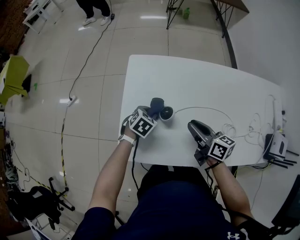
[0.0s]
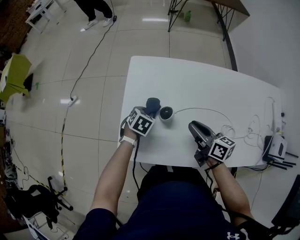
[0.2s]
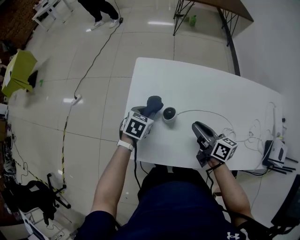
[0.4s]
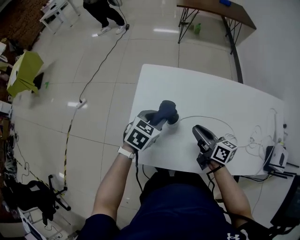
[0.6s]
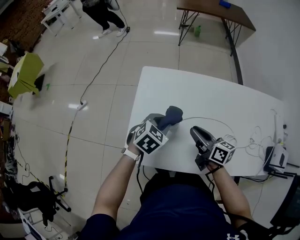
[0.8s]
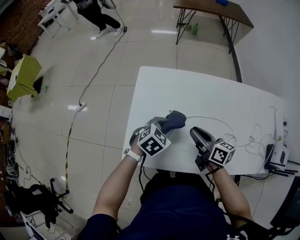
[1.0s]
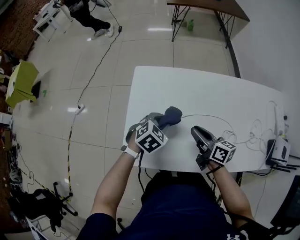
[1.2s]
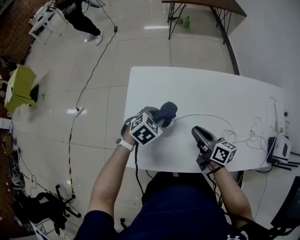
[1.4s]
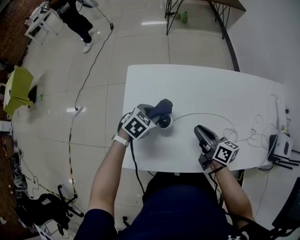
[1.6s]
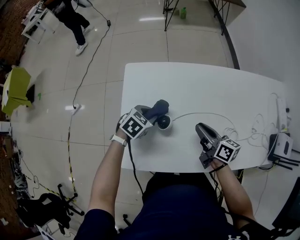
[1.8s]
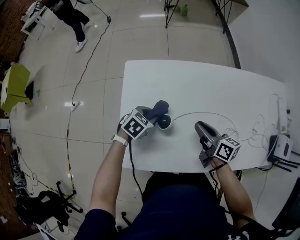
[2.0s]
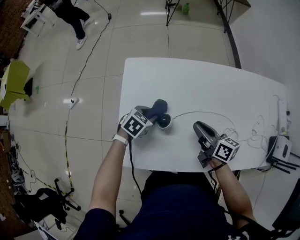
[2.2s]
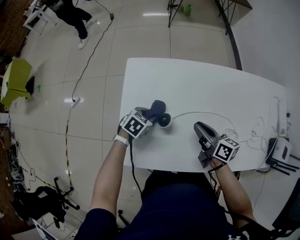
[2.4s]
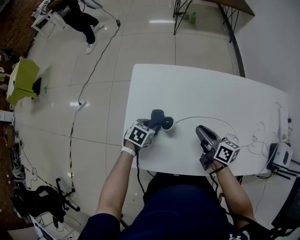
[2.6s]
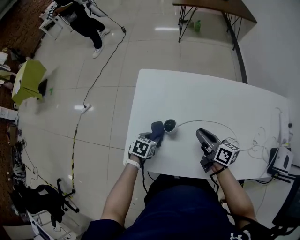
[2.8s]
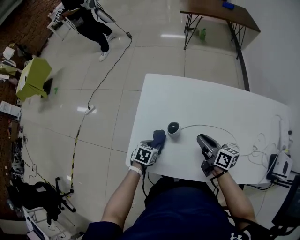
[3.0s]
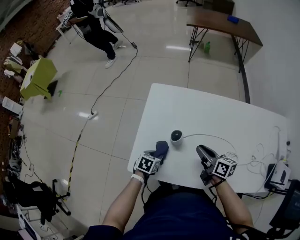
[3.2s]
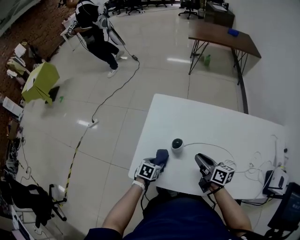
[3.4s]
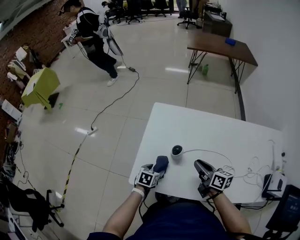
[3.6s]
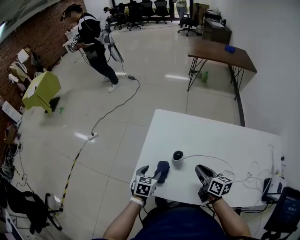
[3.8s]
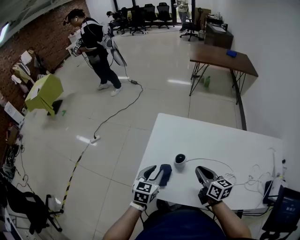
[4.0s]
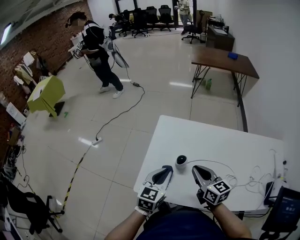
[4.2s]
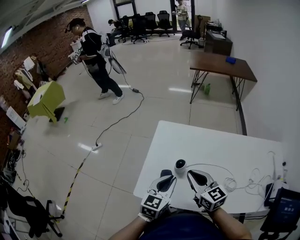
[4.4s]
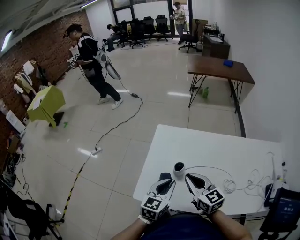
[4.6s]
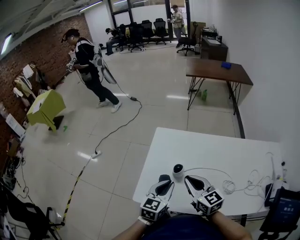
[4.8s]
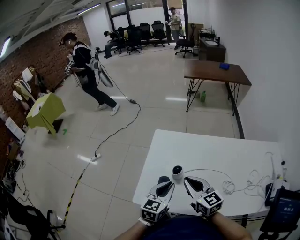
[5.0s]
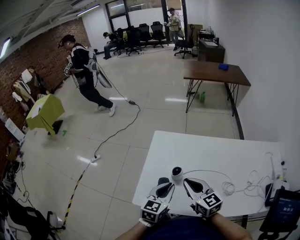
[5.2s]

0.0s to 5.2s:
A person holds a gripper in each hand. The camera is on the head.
0.0s to 1.8s: The left gripper goes upward and returns, about 15 cm each way. Meanwhile the right gripper shifts by some 5 cm.
1.8s to 3.4s: The left gripper shifts approximately 15 cm backward and downward, and changes its angle by approximately 40 degrees. Meanwhile the right gripper moves roughly 5 cm.
3.4s to 5.2s: The left gripper goes roughly 25 cm upward, angles its fingers upward, by about 40 degrees, and closes up; the right gripper is displaced upward and to the left by about 15 cm, and turns by about 40 degrees.

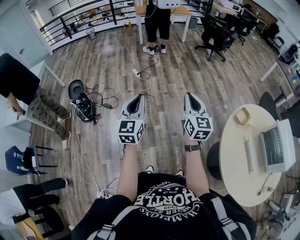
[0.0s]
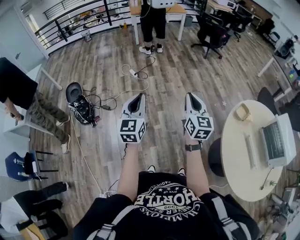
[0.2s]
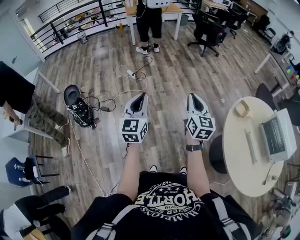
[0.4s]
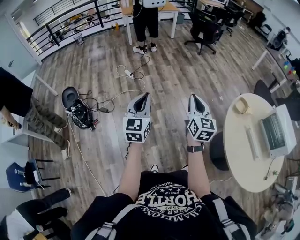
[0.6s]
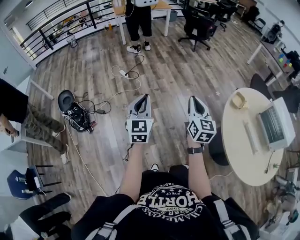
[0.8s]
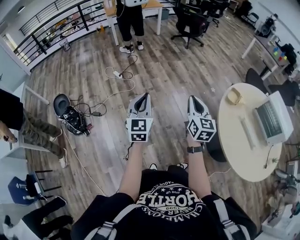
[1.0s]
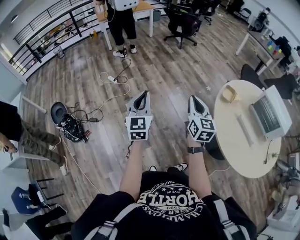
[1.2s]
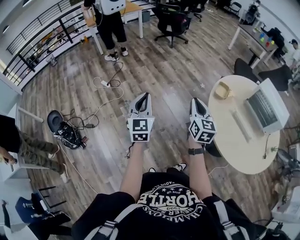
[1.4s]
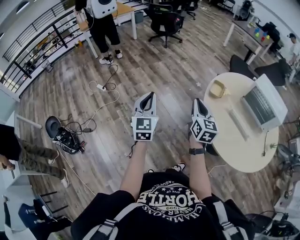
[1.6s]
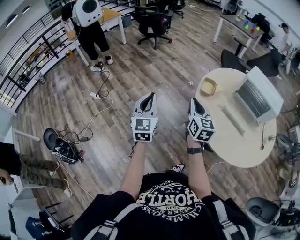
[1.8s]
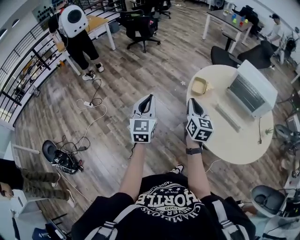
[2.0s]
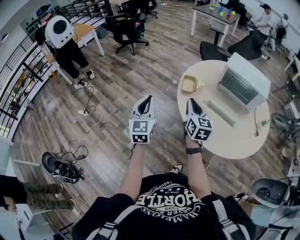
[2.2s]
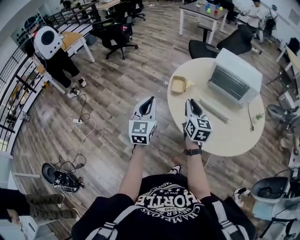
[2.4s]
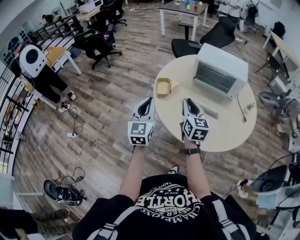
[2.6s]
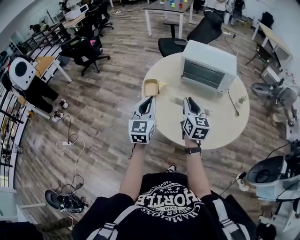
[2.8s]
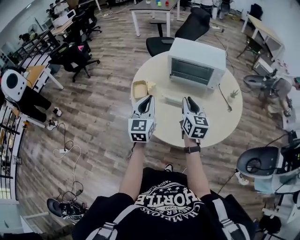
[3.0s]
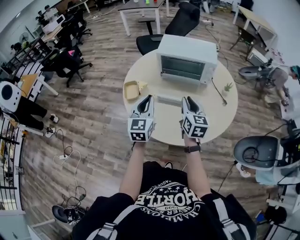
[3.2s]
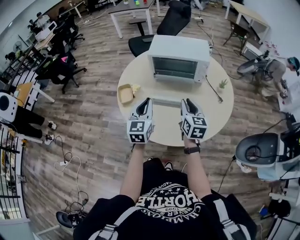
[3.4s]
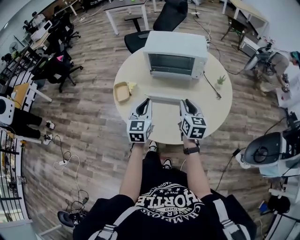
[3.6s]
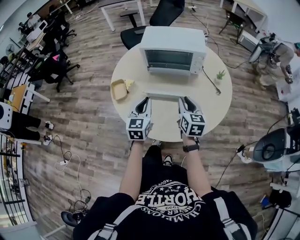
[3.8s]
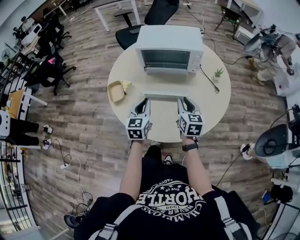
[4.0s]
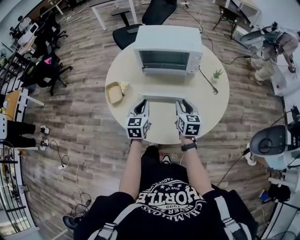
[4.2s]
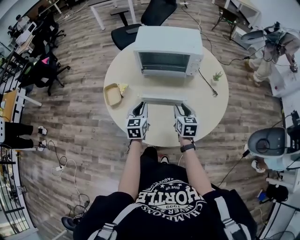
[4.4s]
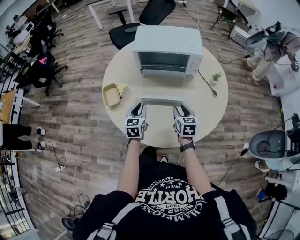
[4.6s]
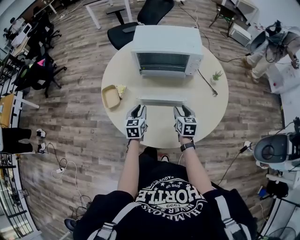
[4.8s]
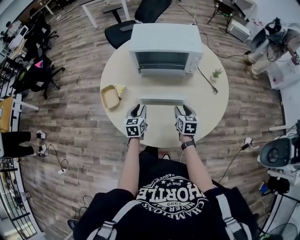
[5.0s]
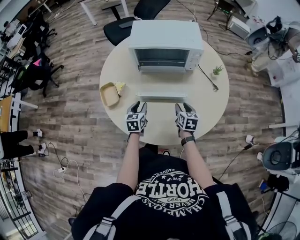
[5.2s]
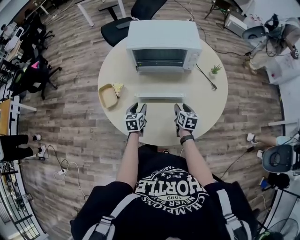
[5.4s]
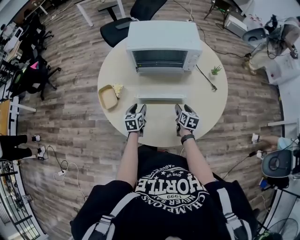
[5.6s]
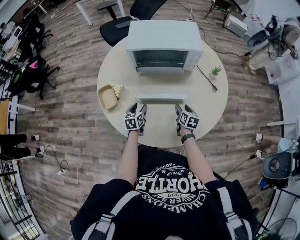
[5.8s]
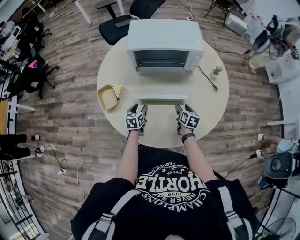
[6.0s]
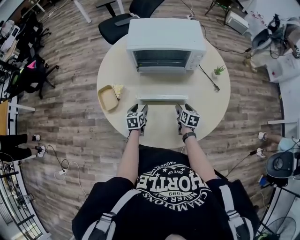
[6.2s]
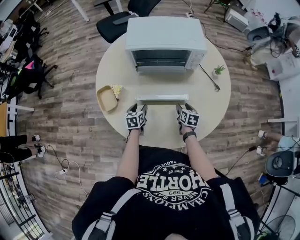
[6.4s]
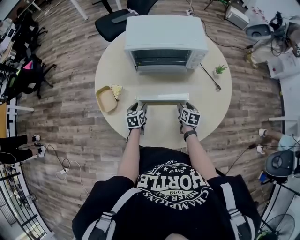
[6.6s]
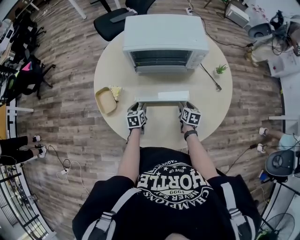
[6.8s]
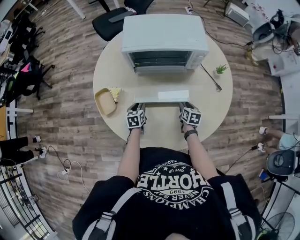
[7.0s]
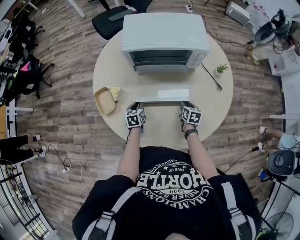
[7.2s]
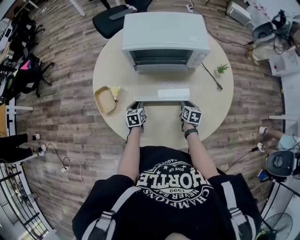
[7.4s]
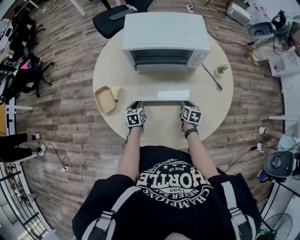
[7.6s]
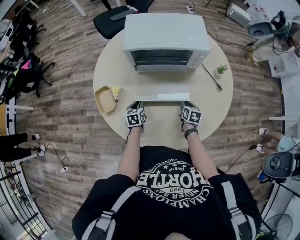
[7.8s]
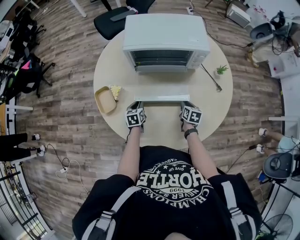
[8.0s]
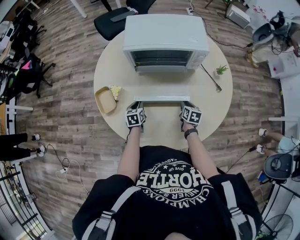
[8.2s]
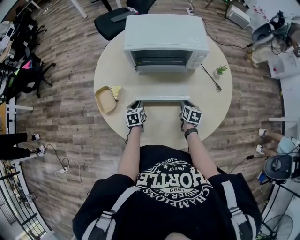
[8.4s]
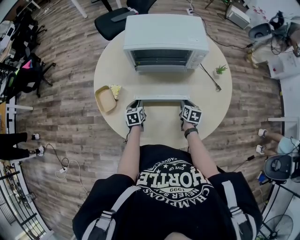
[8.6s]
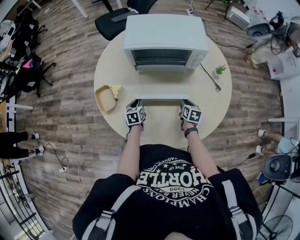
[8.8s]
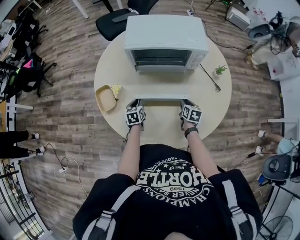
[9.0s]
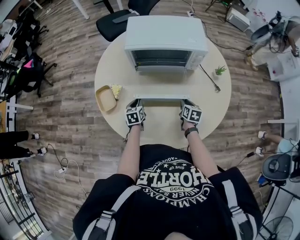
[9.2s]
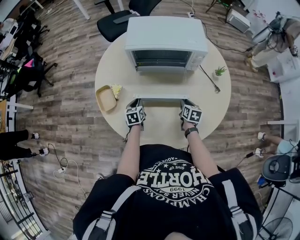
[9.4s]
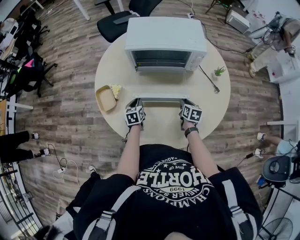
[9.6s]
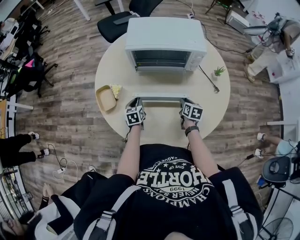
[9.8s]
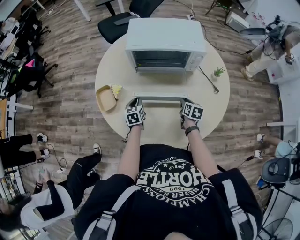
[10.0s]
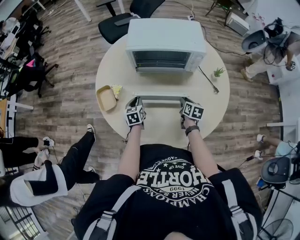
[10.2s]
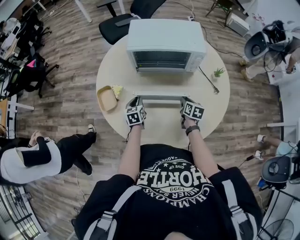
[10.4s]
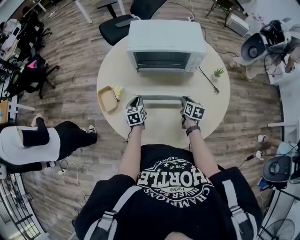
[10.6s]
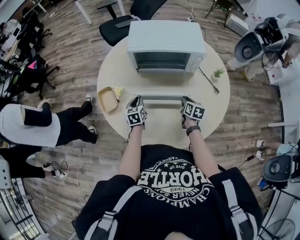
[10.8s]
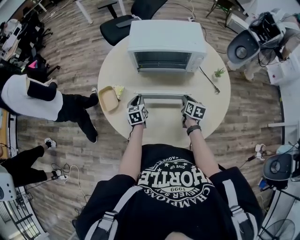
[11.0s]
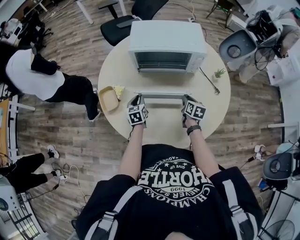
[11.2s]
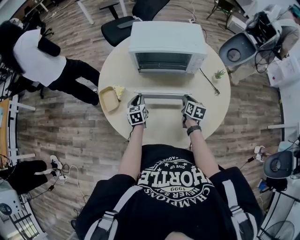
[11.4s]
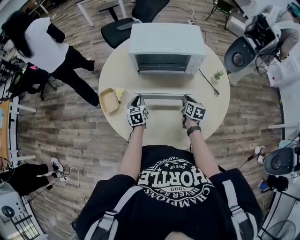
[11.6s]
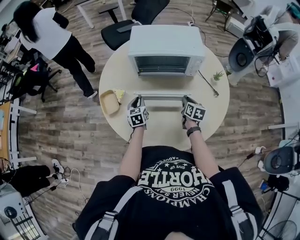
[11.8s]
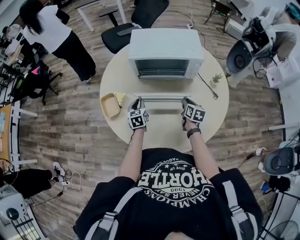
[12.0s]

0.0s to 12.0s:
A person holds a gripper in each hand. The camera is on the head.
0.0s to 1.6s: The left gripper changes place by some 25 cm, and swivels some 20 degrees. Meanwhile the right gripper ends up roughly 20 cm from where it was, and rotates approximately 30 degrees.
1.6s to 3.0s: Both grippers are carried approximately 40 cm. The left gripper turns by some 40 degrees. Meanwhile the right gripper rotates some 30 degrees.
3.0s to 4.4s: The right gripper moves downward and to the right, some 20 cm, and turns by roughly 20 degrees. The left gripper is displaced downward, forward and to the right by some 20 cm, and changes its angle by some 20 degrees.
4.4s to 6.0s: The grippers both shift downward by roughly 15 cm. The right gripper rotates some 20 degrees, and opens up, while the left gripper changes its angle by approximately 20 degrees, and opens up.
6.0s to 7.6s: The right gripper moves roughly 5 cm, and closes up. Meanwhile the left gripper ends up approximately 5 cm from where it was, and closes its fingers.
7.6s to 10.4s: The grippers stay close to where they were, moving slightly.
10.4s to 12.0s: The grippers stay close to where they were, moving slightly.

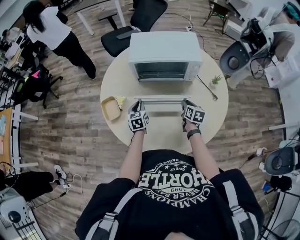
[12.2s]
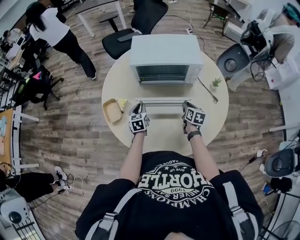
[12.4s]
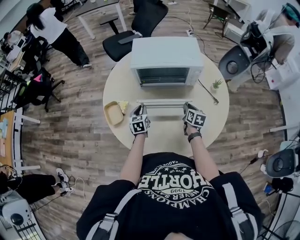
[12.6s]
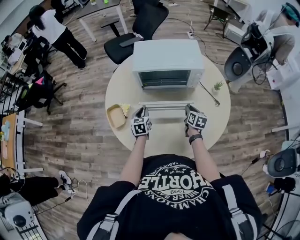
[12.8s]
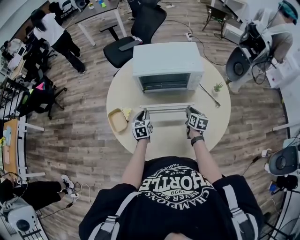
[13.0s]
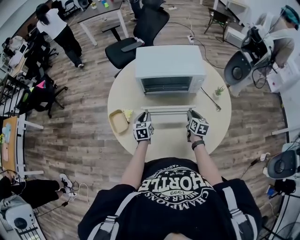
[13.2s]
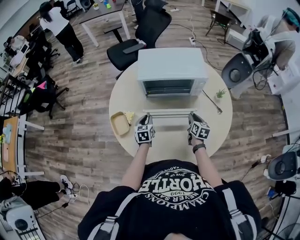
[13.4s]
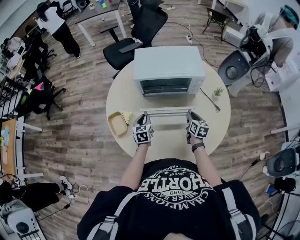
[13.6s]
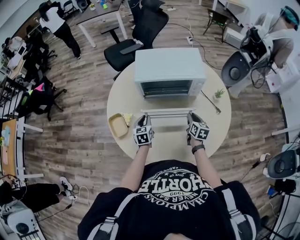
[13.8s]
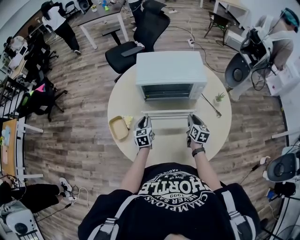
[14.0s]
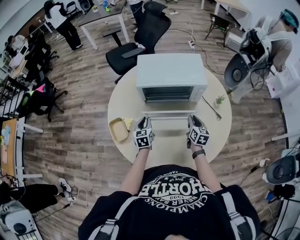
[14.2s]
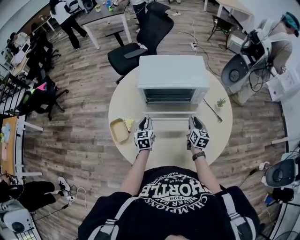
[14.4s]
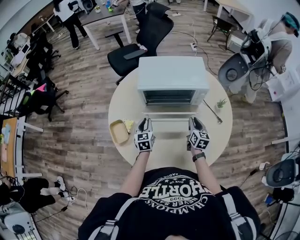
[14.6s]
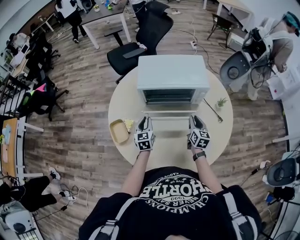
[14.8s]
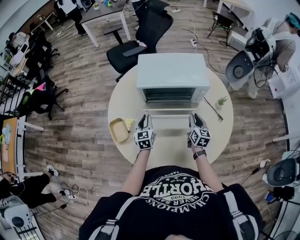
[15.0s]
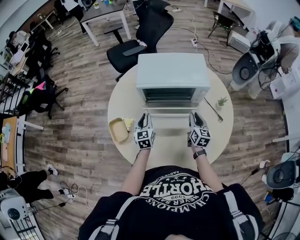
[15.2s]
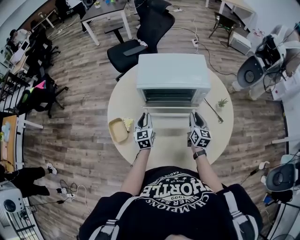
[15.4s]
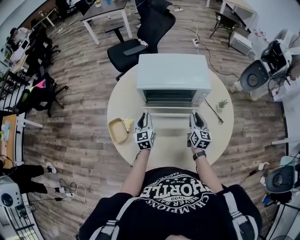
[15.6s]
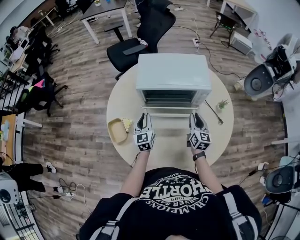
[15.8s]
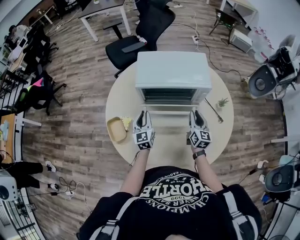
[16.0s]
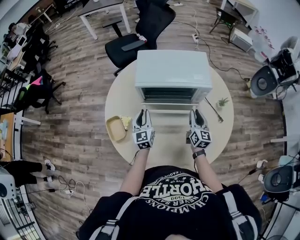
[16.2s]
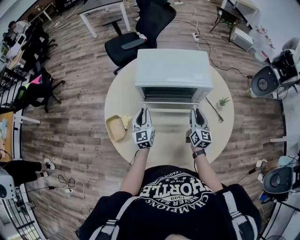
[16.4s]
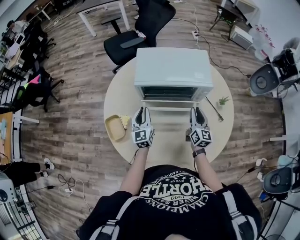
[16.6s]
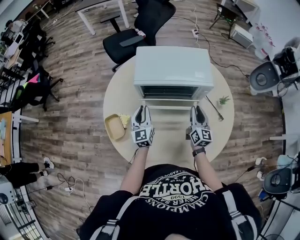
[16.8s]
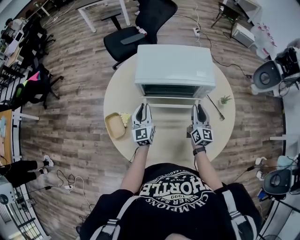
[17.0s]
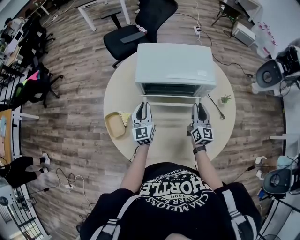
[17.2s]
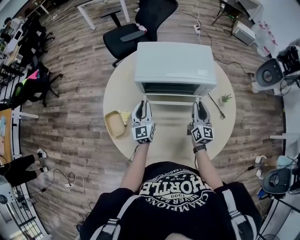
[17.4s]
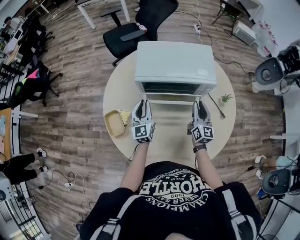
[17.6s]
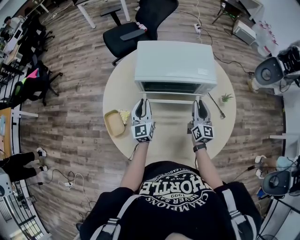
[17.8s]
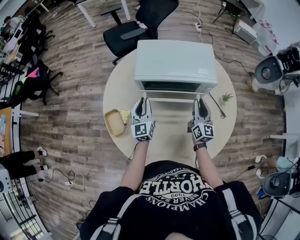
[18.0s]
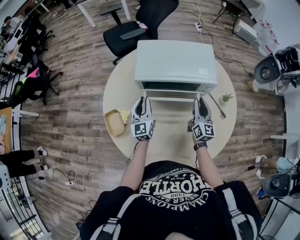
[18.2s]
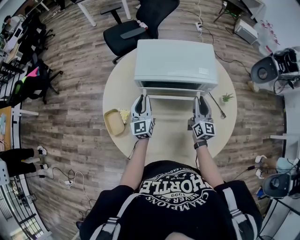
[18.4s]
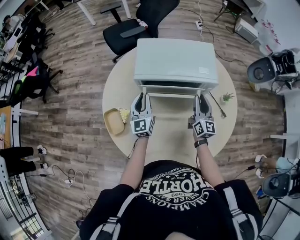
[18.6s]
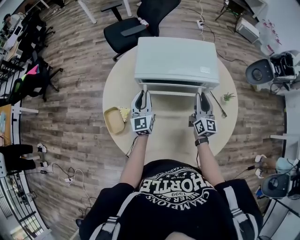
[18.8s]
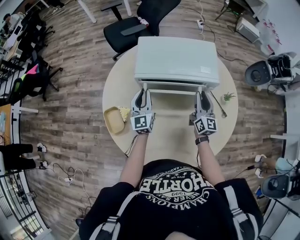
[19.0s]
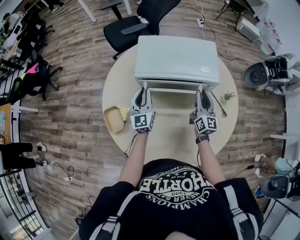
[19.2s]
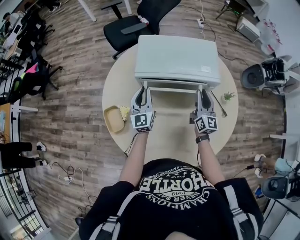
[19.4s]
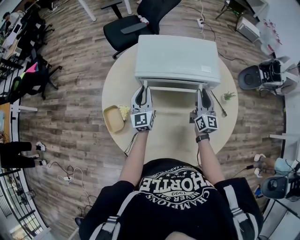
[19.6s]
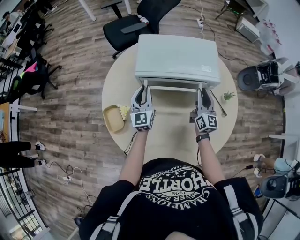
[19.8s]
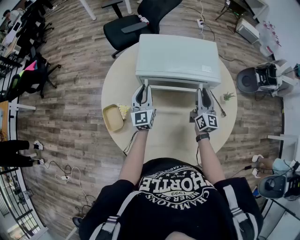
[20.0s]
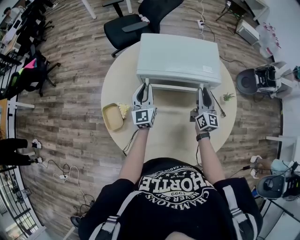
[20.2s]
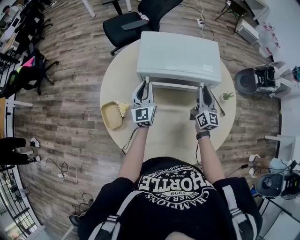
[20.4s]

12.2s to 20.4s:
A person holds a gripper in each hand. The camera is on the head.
12.2s to 13.8s: The grippers make only small movements.
13.8s to 15.4s: Both grippers move upward, some 5 cm.
15.4s to 17.2s: The grippers stay close to where they were, moving slightly.
17.2s to 18.8s: The grippers make only small movements.
18.8s to 20.4s: The grippers stay close to where they were, moving slightly.
